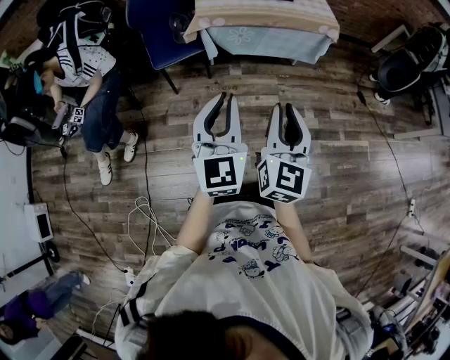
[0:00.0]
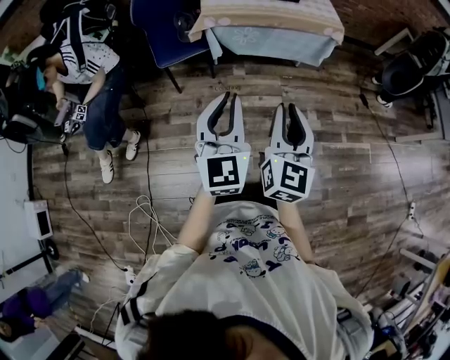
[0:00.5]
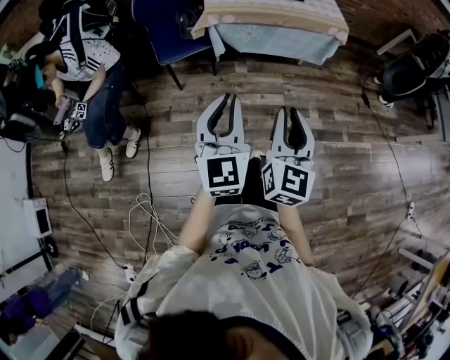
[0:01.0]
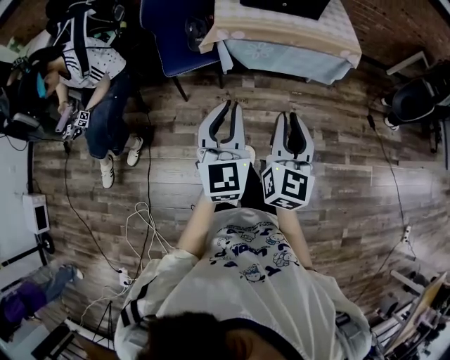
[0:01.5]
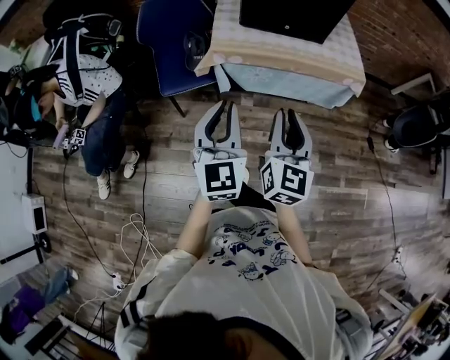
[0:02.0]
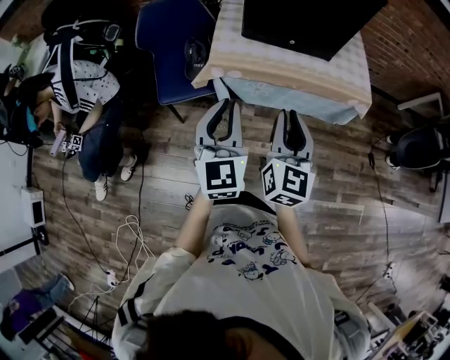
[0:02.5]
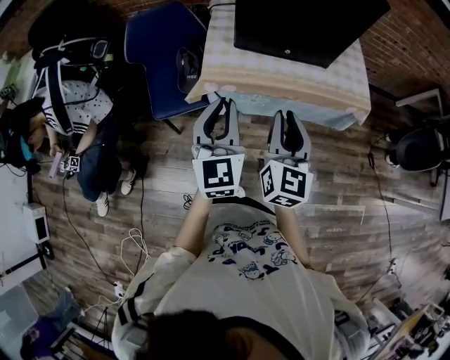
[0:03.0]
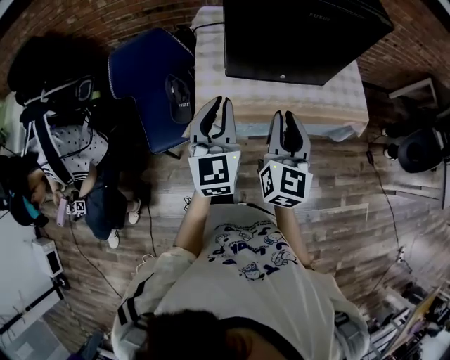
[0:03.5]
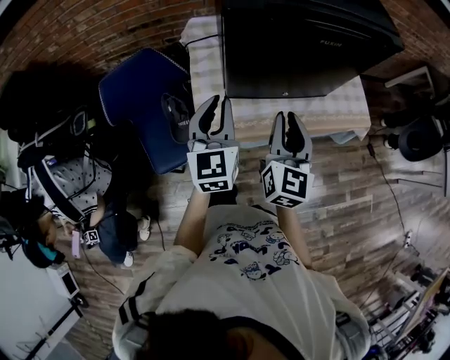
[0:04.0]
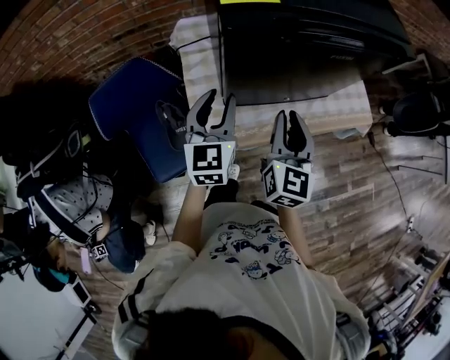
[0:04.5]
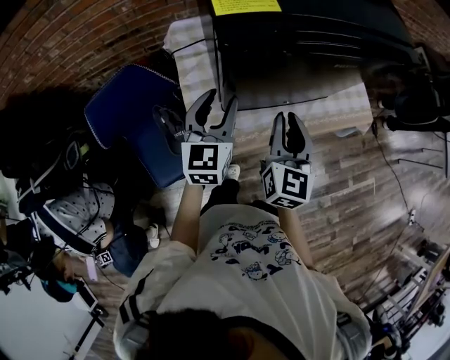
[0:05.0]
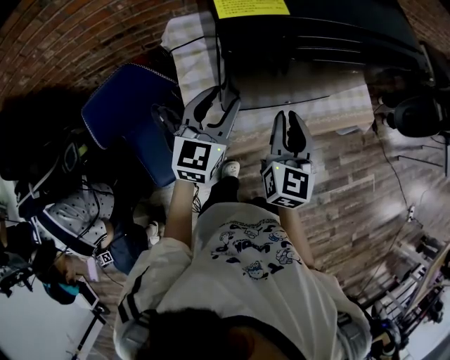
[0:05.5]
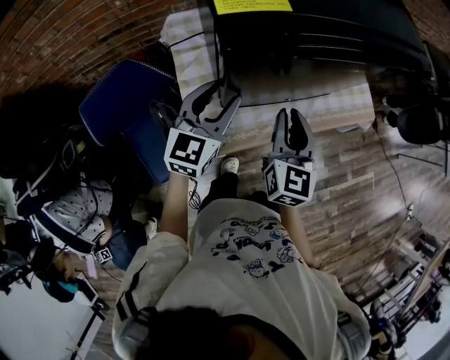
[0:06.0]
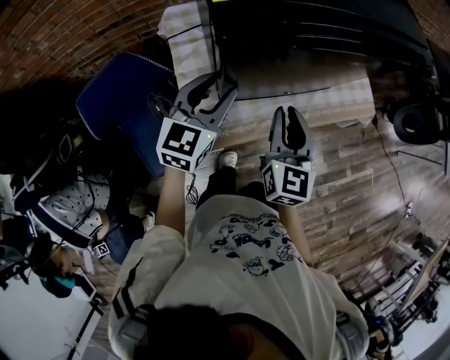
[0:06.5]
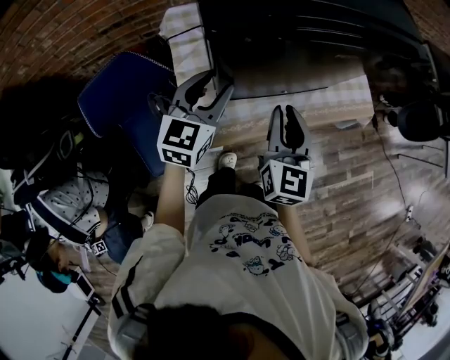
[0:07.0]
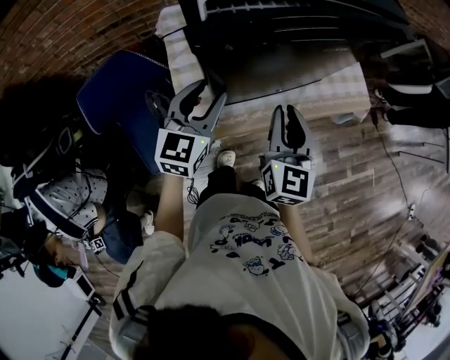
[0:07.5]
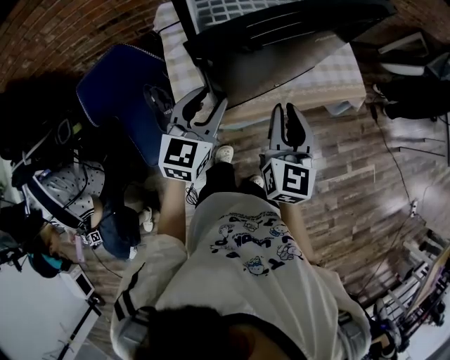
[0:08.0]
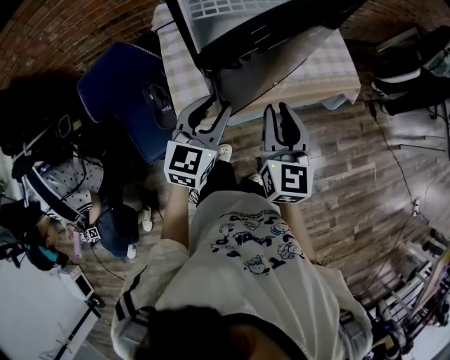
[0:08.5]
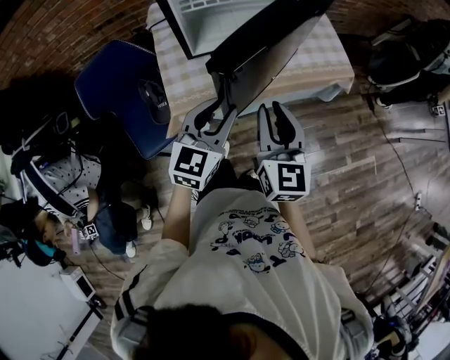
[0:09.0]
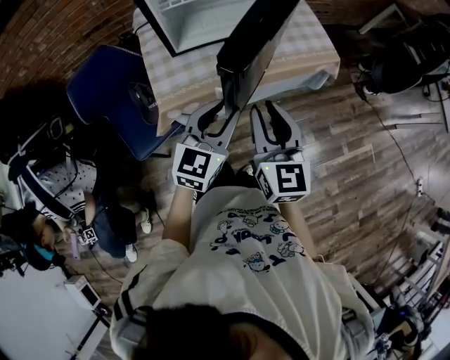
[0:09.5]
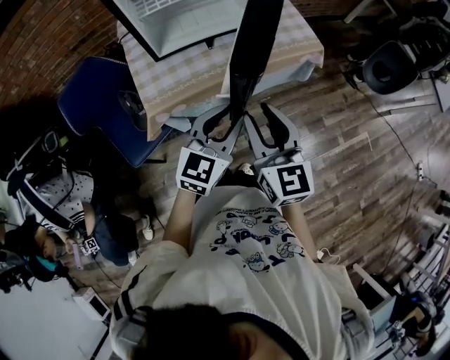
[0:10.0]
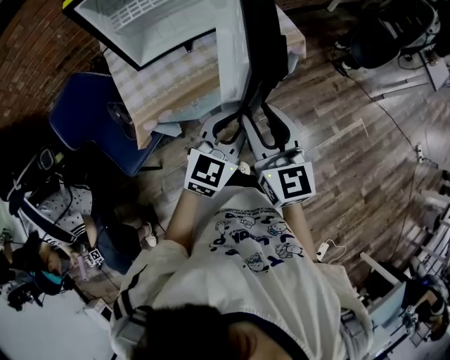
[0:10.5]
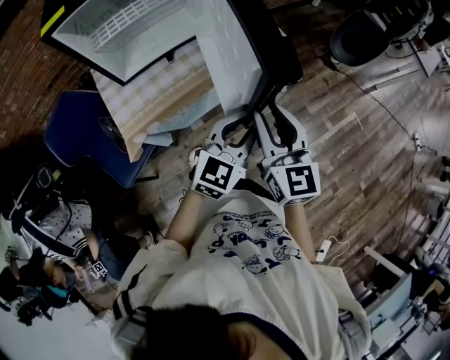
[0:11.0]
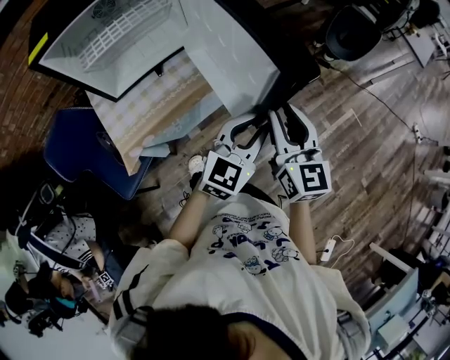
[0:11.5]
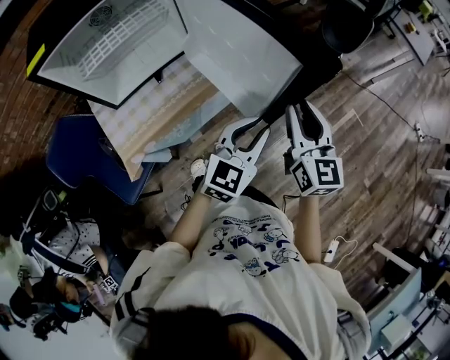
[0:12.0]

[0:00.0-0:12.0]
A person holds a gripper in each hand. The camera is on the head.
0:00.0 to 0:02.0: Both grippers move forward, approximately 25 cm.
0:02.0 to 0:04.0: Both grippers move forward, roughly 40 cm.
0:04.0 to 0:06.0: Both grippers travel together forward, some 10 cm. The left gripper changes its angle by roughly 30 degrees, and opens.
0:06.0 to 0:08.0: Both grippers travel together backward and to the right, about 10 cm.
0:08.0 to 0:10.0: The right gripper heads backward and to the right, covering approximately 20 cm. The left gripper is displaced to the right and backward by about 25 cm.
0:10.0 to 0:12.0: The left gripper heads to the right, covering roughly 20 cm, and changes its angle by roughly 20 degrees, while the right gripper heads to the right and forward, covering some 25 cm, and rotates approximately 20 degrees.

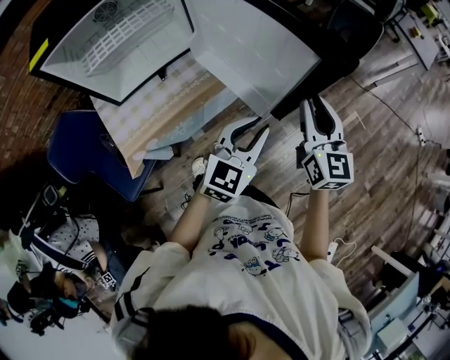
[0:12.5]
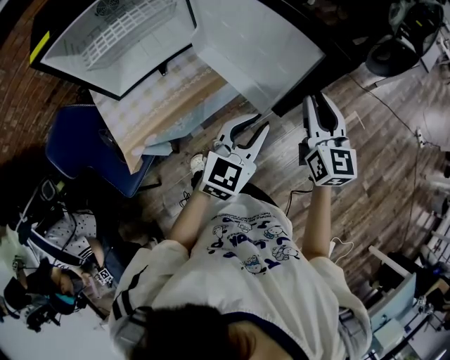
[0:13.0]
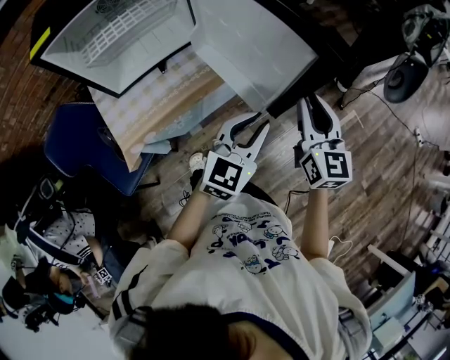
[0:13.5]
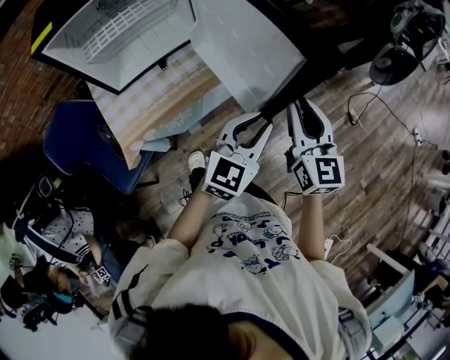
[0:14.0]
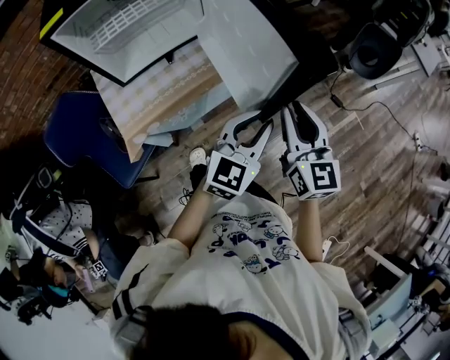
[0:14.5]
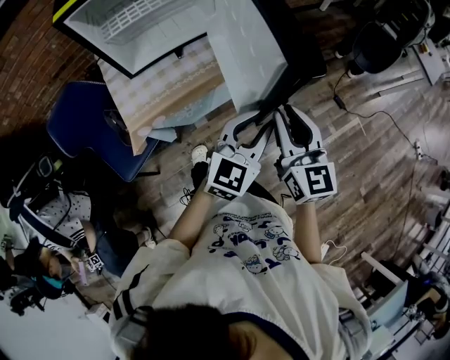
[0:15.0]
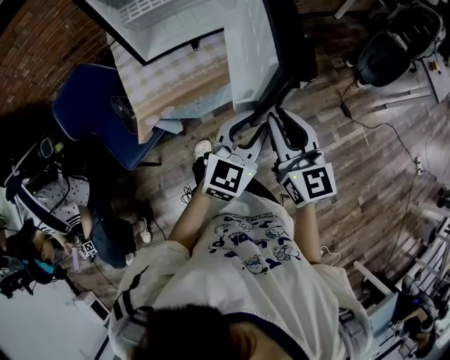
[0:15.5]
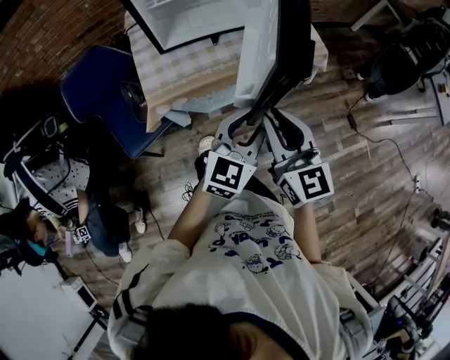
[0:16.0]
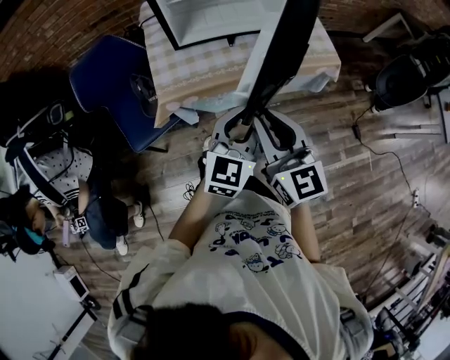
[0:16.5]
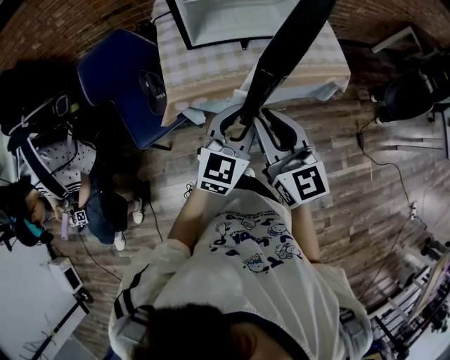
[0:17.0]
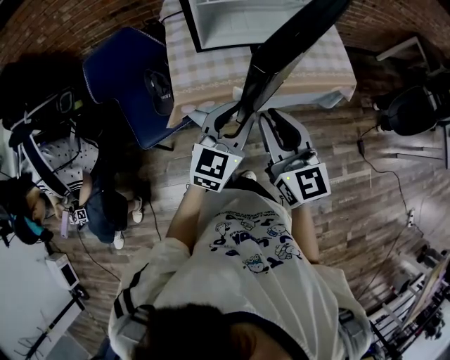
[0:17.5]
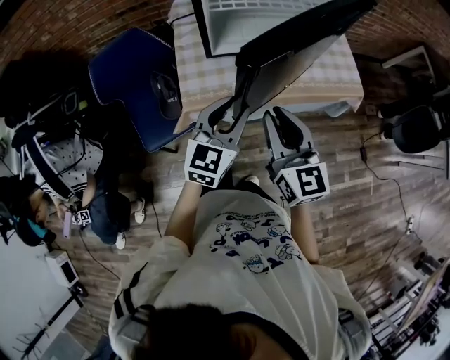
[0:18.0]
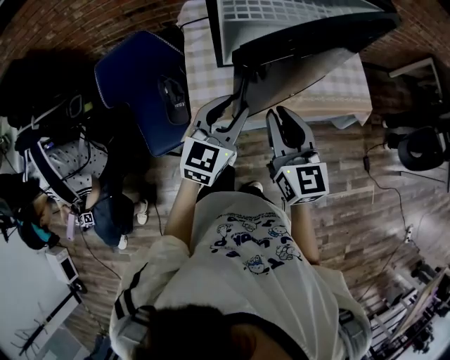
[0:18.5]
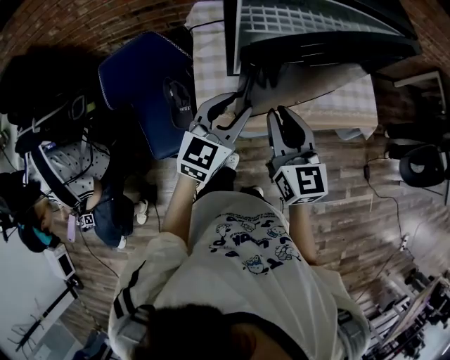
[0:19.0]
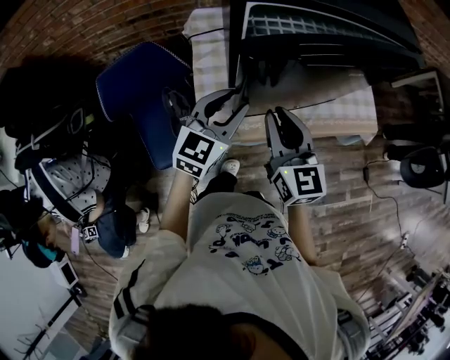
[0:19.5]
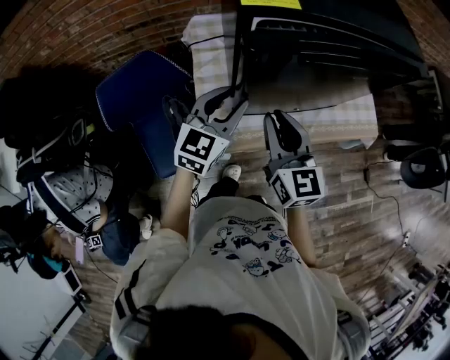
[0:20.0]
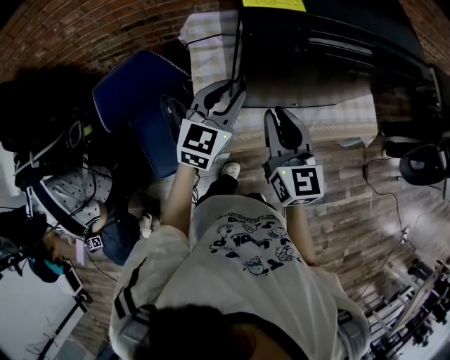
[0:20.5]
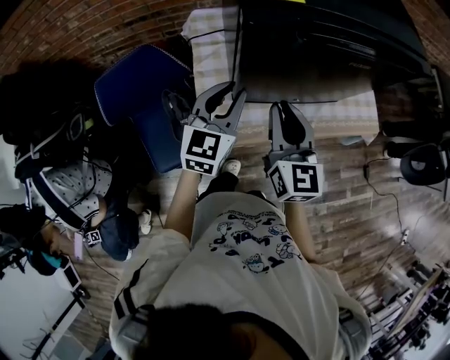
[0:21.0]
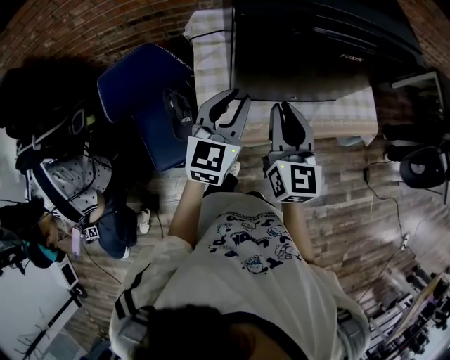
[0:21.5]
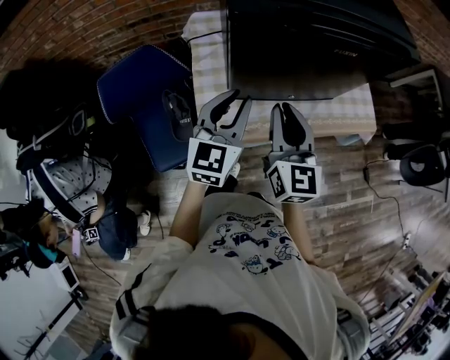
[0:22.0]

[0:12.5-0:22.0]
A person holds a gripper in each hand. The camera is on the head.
0:12.5 to 0:14.5: The right gripper goes approximately 10 cm backward and to the left.
0:14.5 to 0:16.5: The right gripper ends up some 20 cm from where it was, and rotates some 30 degrees; the left gripper moves approximately 15 cm, and rotates roughly 30 degrees.
0:16.5 to 0:18.0: The left gripper moves to the left and forward, approximately 15 cm; the right gripper goes roughly 10 cm forward and to the left.
0:18.0 to 0:20.0: Both grippers move forward and to the left, about 20 cm.
0:20.0 to 0:22.0: The left gripper shifts by some 5 cm.
